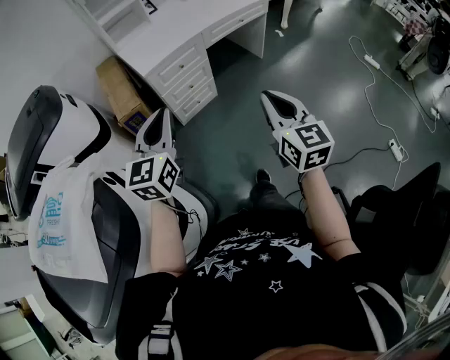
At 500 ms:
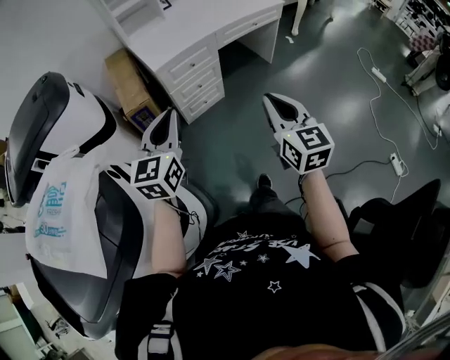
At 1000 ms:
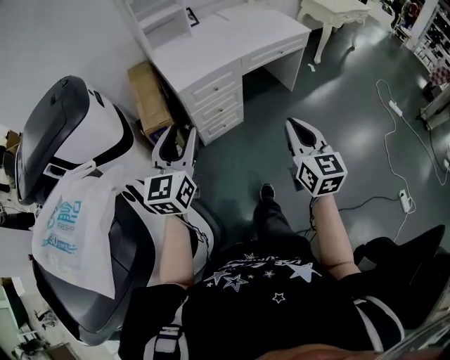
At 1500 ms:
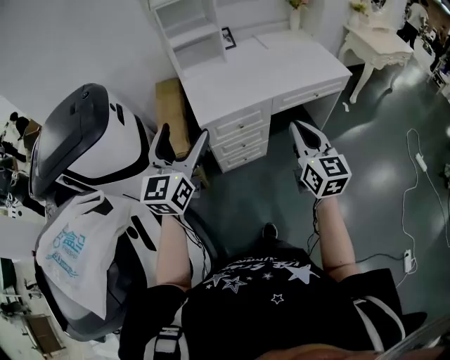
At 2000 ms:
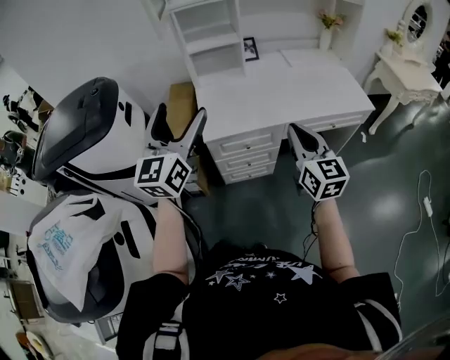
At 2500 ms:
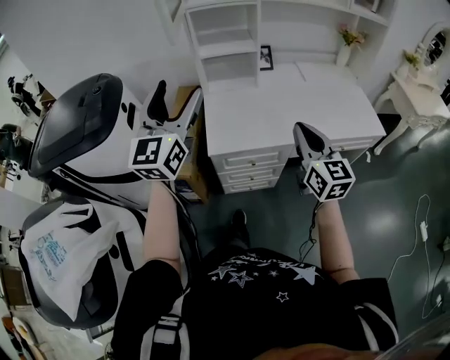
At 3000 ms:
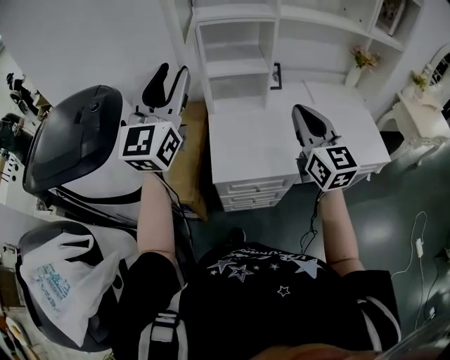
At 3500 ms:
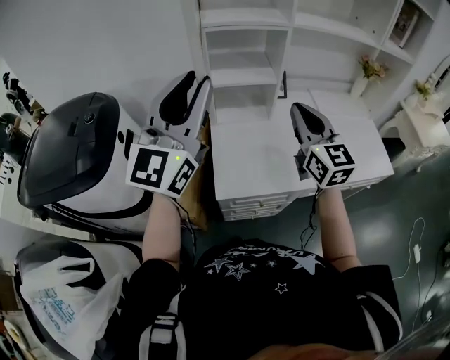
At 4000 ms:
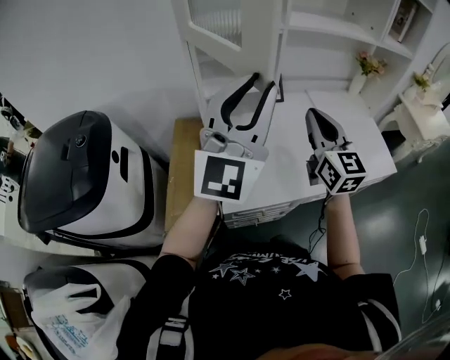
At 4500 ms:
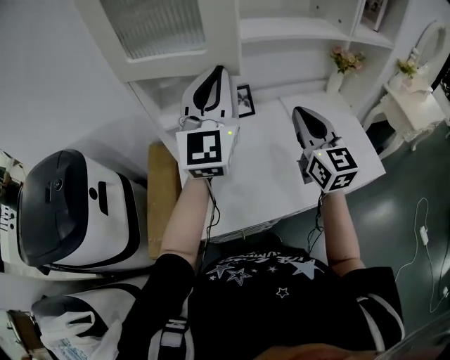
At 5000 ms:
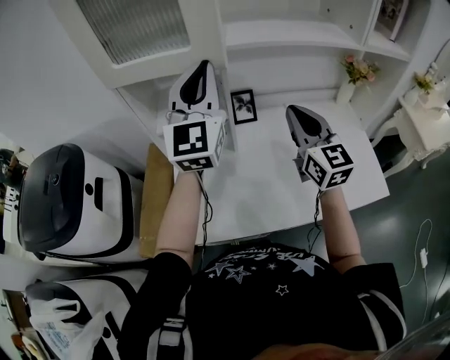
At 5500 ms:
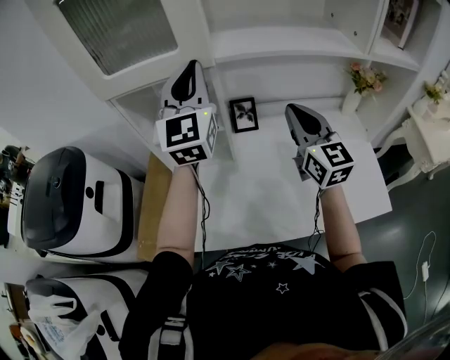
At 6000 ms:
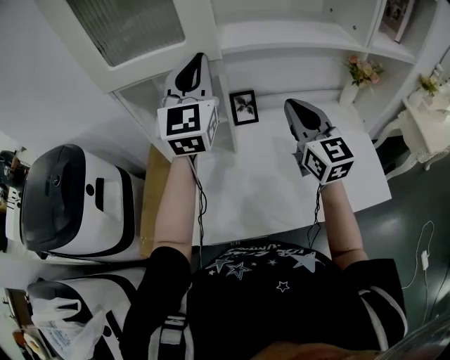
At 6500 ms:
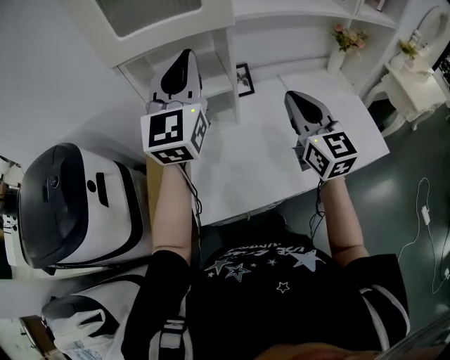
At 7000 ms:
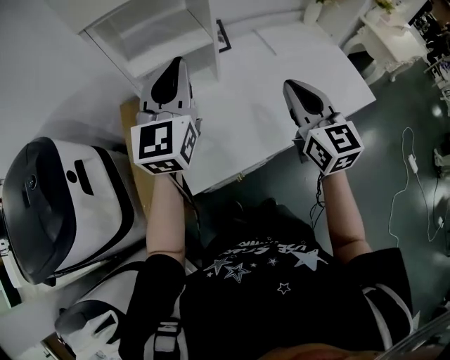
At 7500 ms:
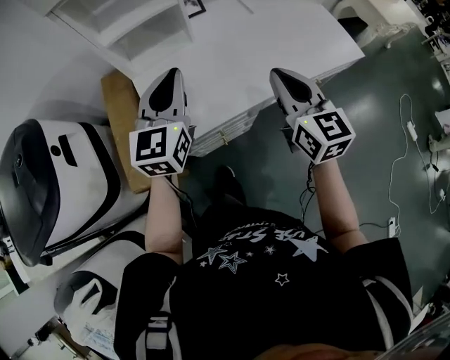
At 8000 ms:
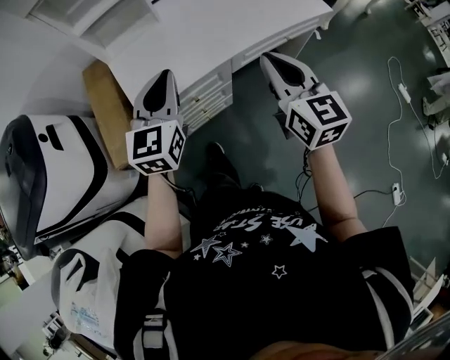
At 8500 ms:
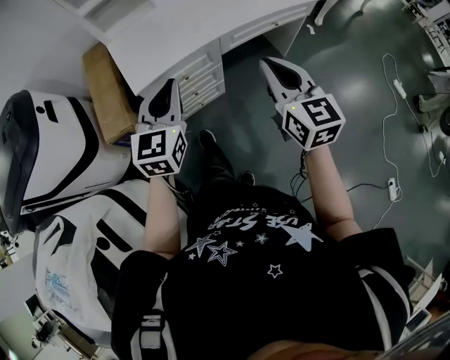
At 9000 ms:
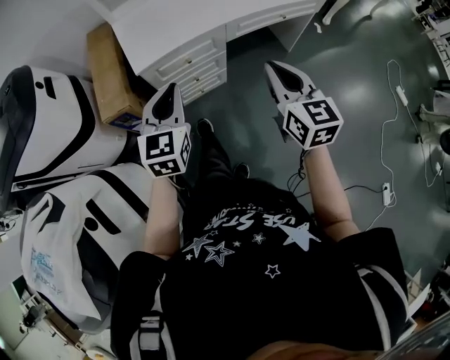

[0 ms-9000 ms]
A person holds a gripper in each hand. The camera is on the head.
0 ms to 2000 ms: Both grippers travel together forward, roughly 40 cm. The left gripper changes its angle by about 30 degrees, and opens up. Meanwhile the right gripper rotates approximately 30 degrees.
2000 ms to 4500 ms: Both grippers are carried forward, roughly 40 cm. The left gripper closes its fingers.
4500 ms to 7000 ms: The right gripper moves backward, downward and to the left, approximately 15 cm. The left gripper heads downward and to the left, covering some 15 cm, goes forward and returns, about 10 cm each way, and turns by roughly 20 degrees.
7000 ms to 9000 ms: The pair of grippers is taken backward, roughly 40 cm. The left gripper goes some 20 cm downward, and rotates roughly 20 degrees.

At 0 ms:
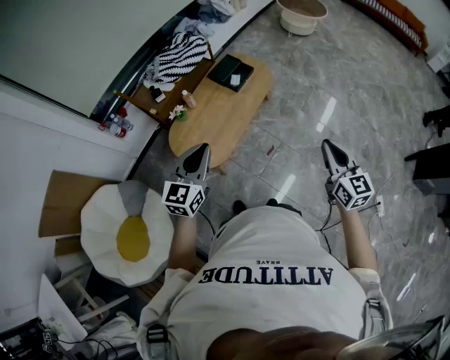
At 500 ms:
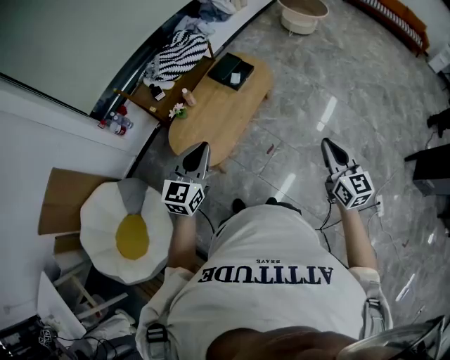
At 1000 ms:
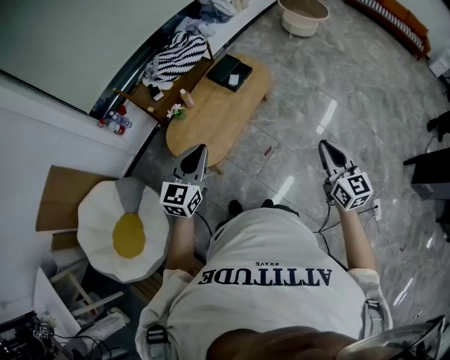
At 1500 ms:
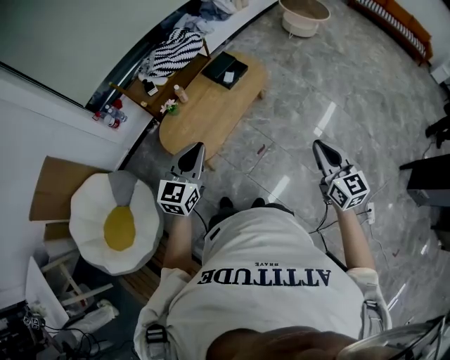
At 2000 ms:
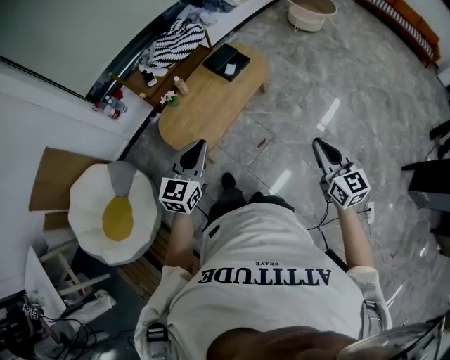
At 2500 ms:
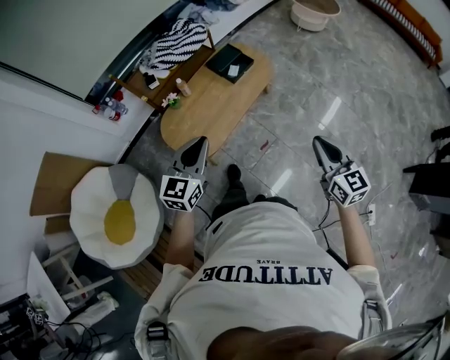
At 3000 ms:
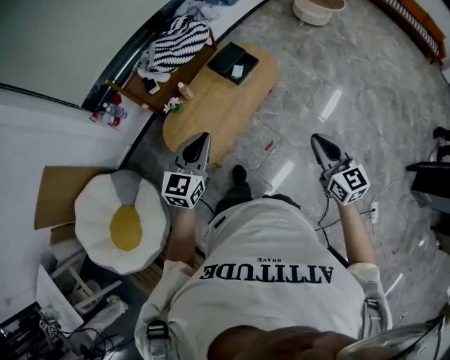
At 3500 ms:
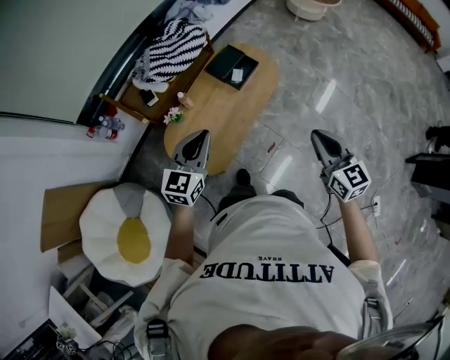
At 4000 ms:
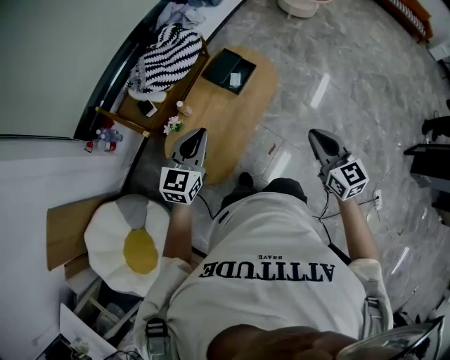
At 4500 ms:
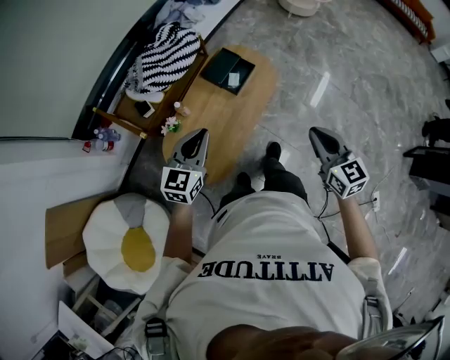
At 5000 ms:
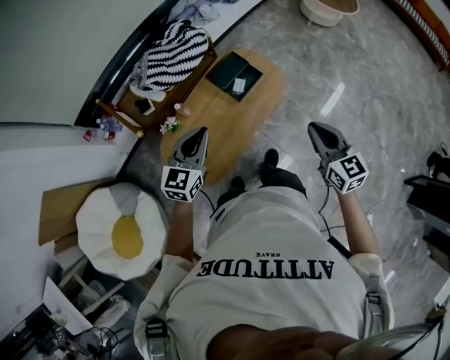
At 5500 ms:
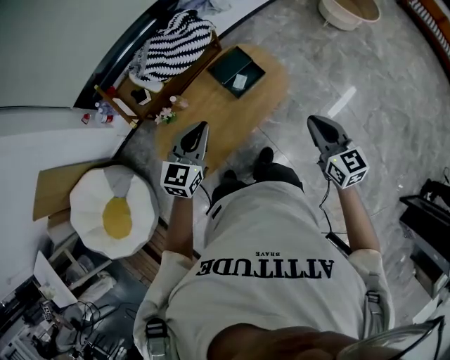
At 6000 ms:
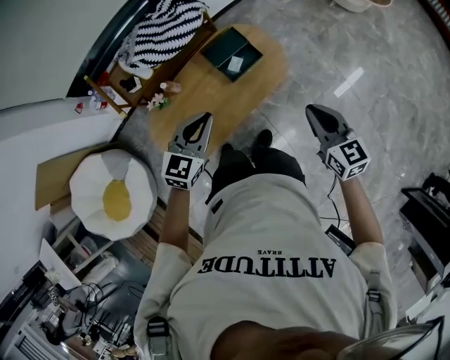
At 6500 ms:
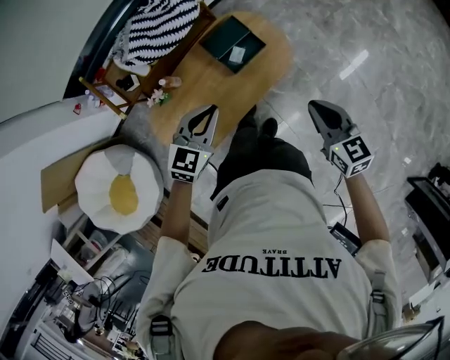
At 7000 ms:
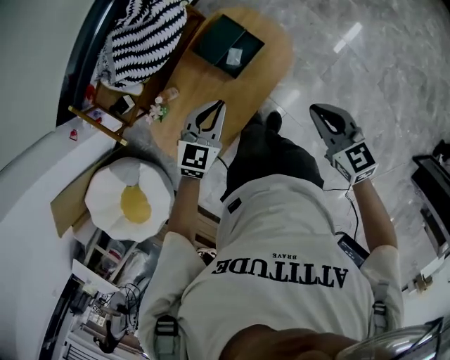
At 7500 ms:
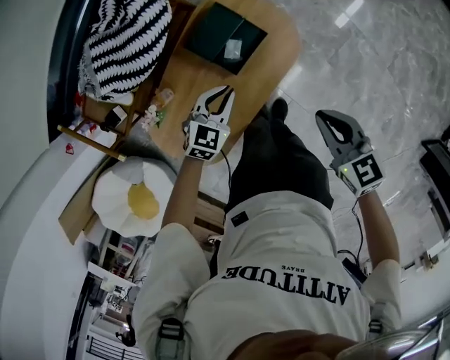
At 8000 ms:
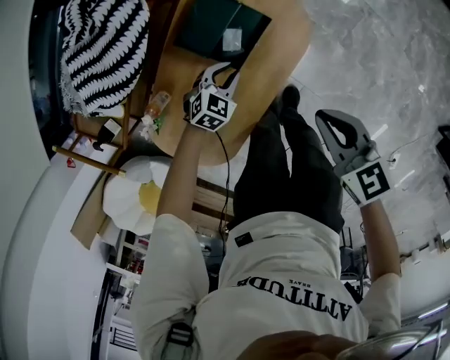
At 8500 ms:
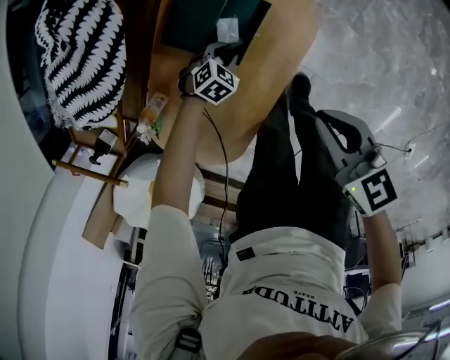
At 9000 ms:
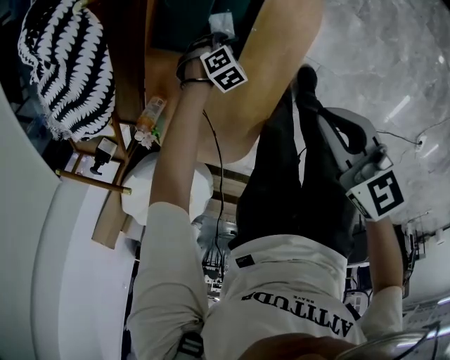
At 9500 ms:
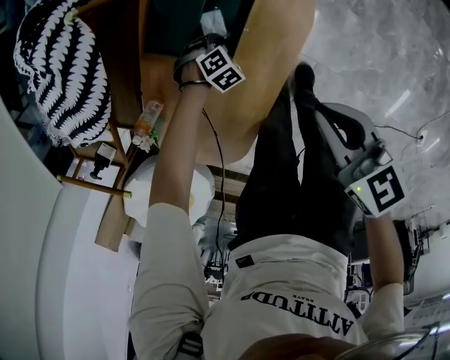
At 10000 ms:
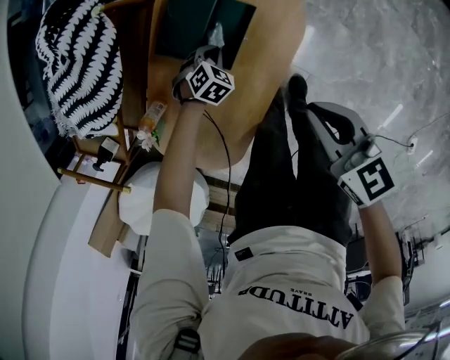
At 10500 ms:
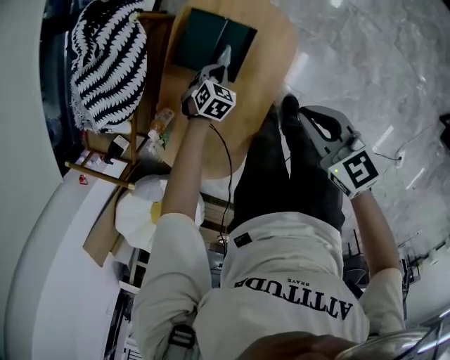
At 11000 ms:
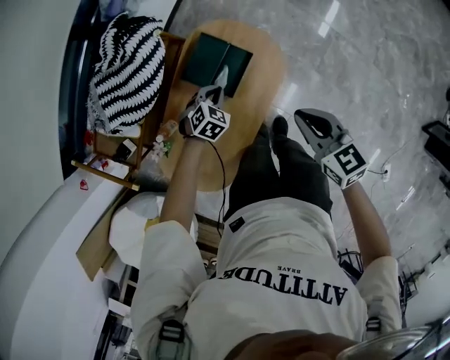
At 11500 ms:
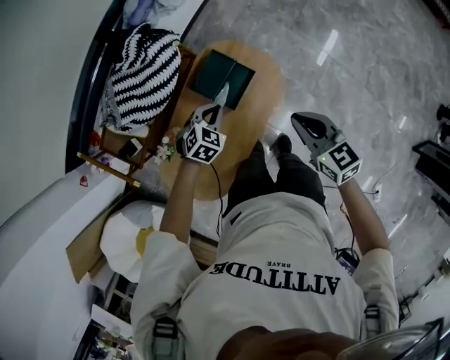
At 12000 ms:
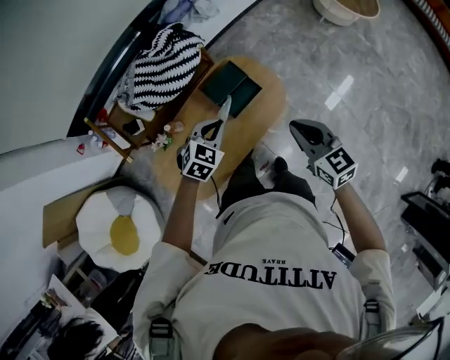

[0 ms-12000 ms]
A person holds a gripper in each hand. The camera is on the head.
0 ms to 2000 ms: Both grippers move to the right, about 10 cm.
2000 ms to 4000 ms: The right gripper moves forward and to the left, approximately 30 cm. The left gripper heads forward, covering some 30 cm.
4000 ms to 6000 ms: The right gripper shifts some 30 cm forward and to the right, and turns by roughly 20 degrees. The left gripper goes approximately 25 cm to the right and forward.
6000 ms to 8000 ms: The left gripper shifts some 50 cm downward and forward, and turns by roughly 40 degrees; the right gripper moves downward and forward, roughly 25 cm.
8000 ms to 10000 ms: The right gripper moves downward, about 5 cm. The left gripper goes about 10 cm downward, and rotates roughly 20 degrees.
10000 ms to 12000 ms: The left gripper is displaced upward by about 50 cm, and turns by about 40 degrees, while the right gripper shifts some 25 cm upward, and turns by approximately 30 degrees.

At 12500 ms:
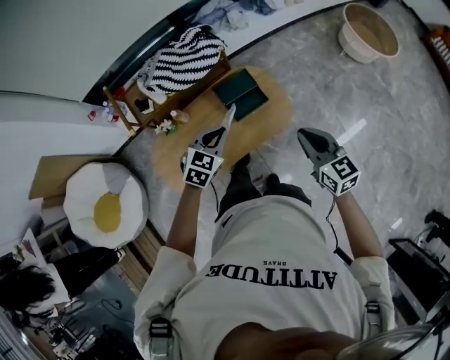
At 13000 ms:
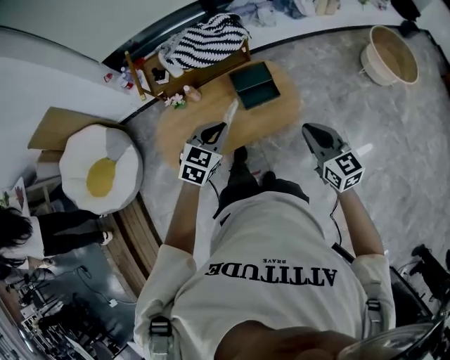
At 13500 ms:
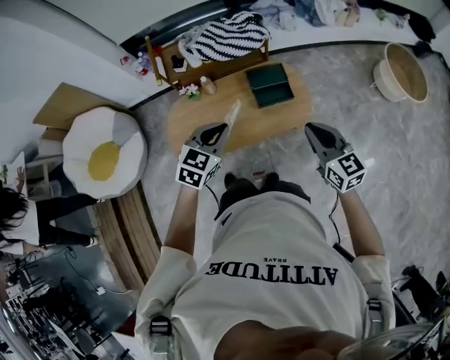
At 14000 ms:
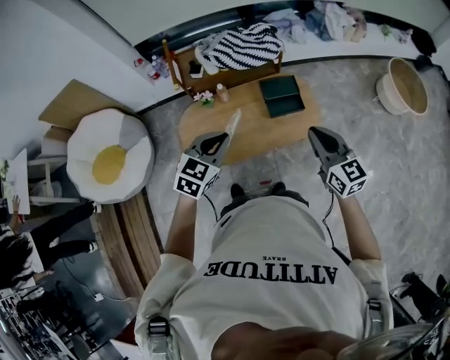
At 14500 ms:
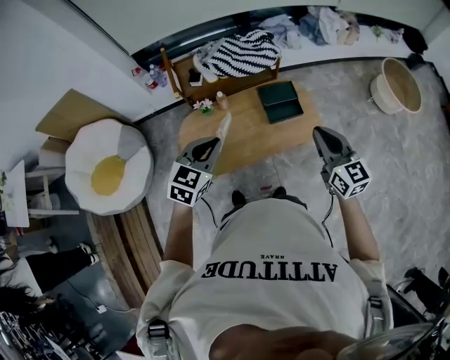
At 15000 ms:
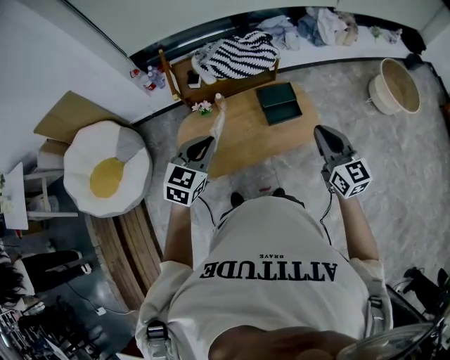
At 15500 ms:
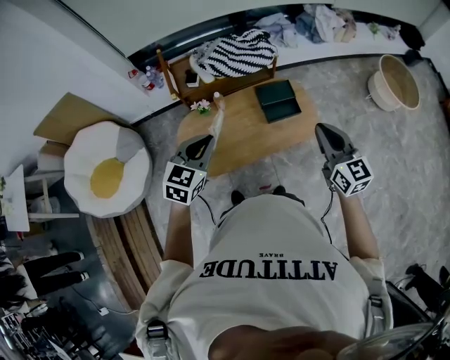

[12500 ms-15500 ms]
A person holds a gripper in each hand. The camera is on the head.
12500 ms to 14000 ms: The right gripper shifts about 15 cm to the left and upward. The left gripper goes roughly 25 cm to the left, backward and upward.
14000 ms to 15500 ms: The left gripper travels to the left by approximately 5 cm.

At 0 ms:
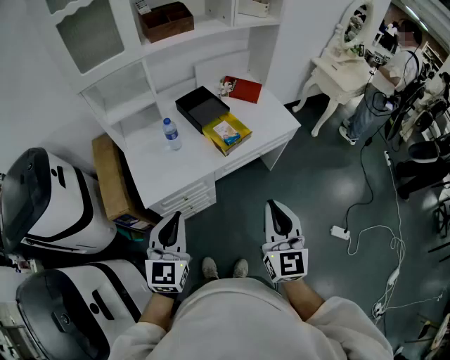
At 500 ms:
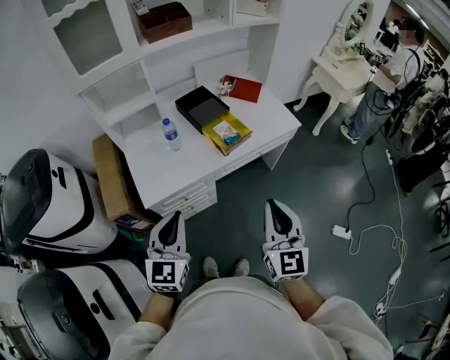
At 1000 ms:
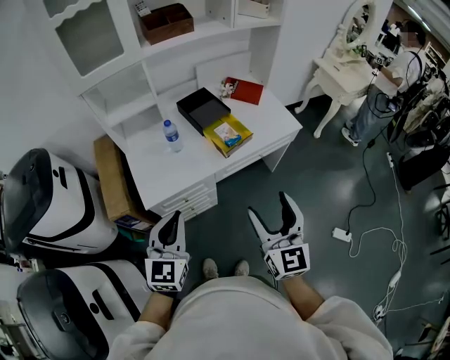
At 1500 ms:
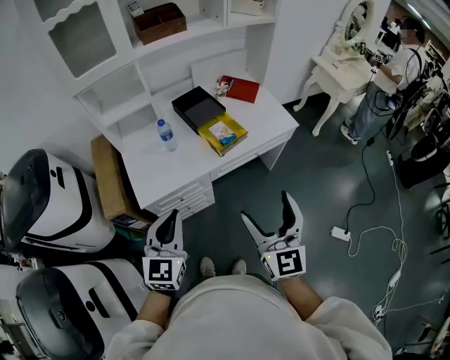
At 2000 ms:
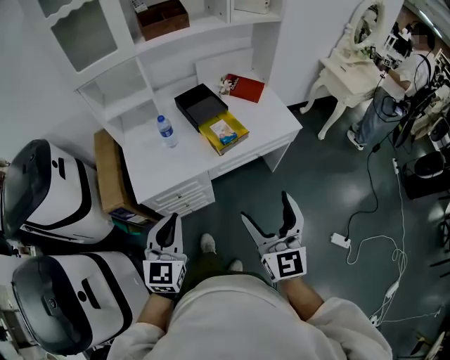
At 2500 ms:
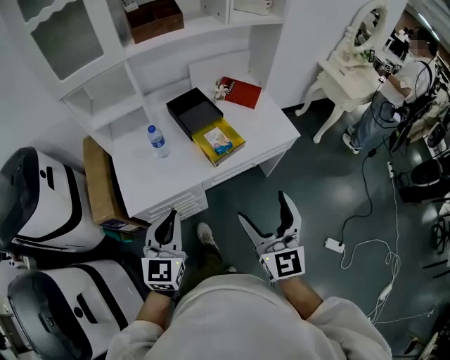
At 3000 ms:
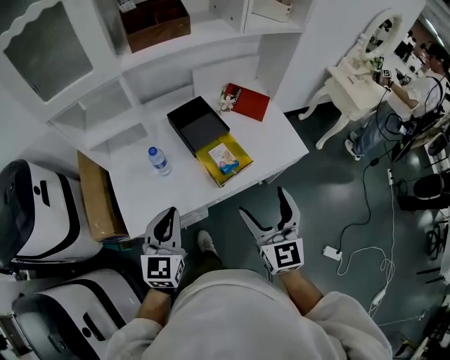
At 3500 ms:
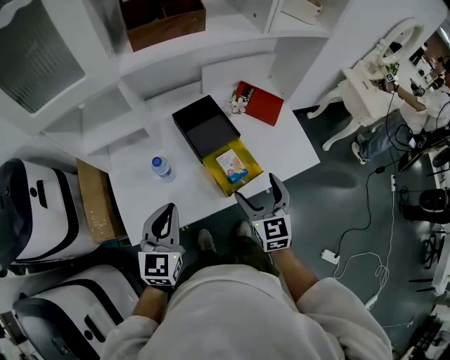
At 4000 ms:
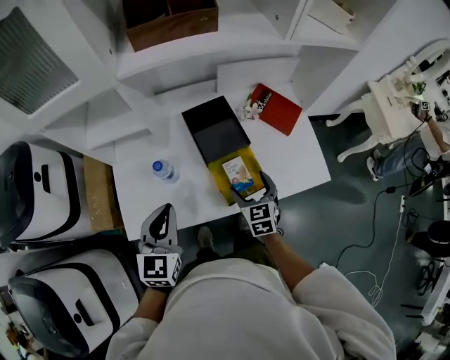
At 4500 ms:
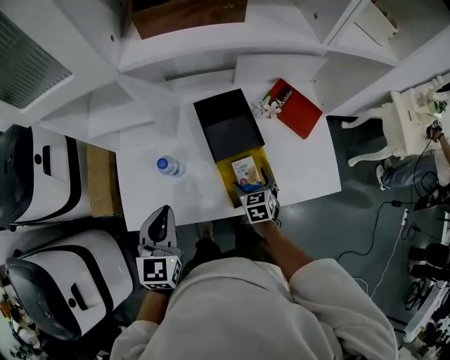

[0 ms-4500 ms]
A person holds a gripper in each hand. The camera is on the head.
0 ms to 2000 ms: The left gripper shifts some 5 cm to the right; the right gripper opens.
2000 ms to 4500 ms: The left gripper travels forward by about 35 cm, and rotates roughly 20 degrees, while the right gripper is displaced forward and downward by some 60 cm, and angles its fingers downward, by about 50 degrees.
